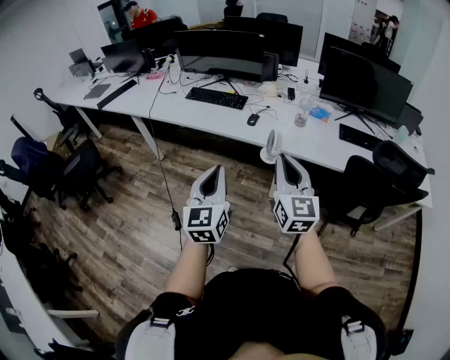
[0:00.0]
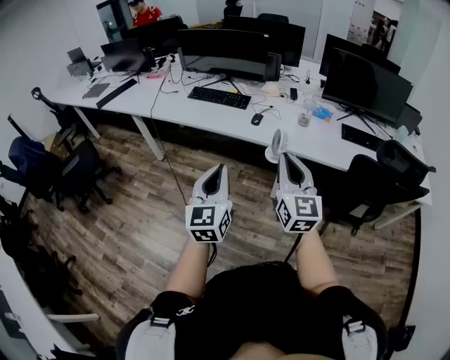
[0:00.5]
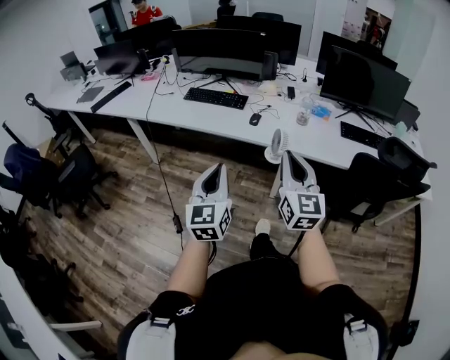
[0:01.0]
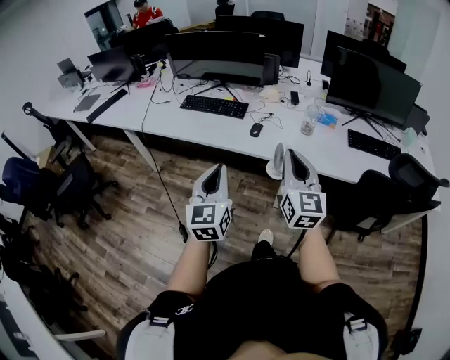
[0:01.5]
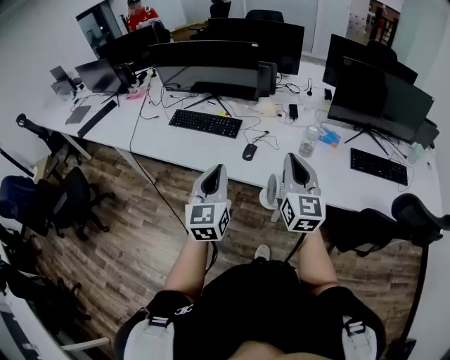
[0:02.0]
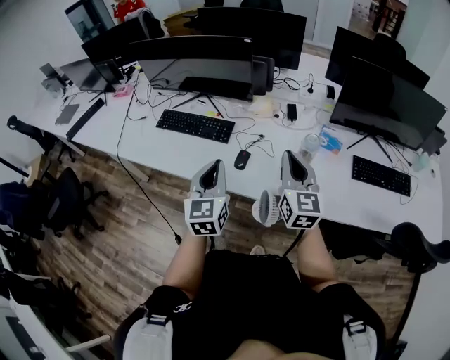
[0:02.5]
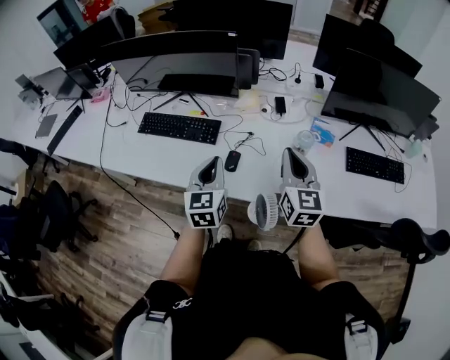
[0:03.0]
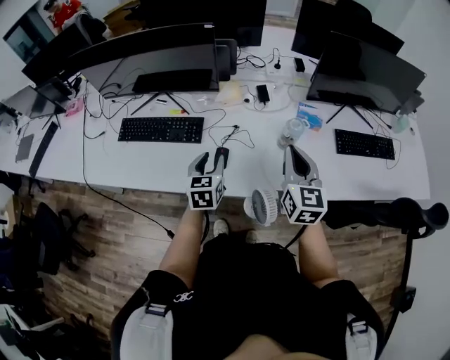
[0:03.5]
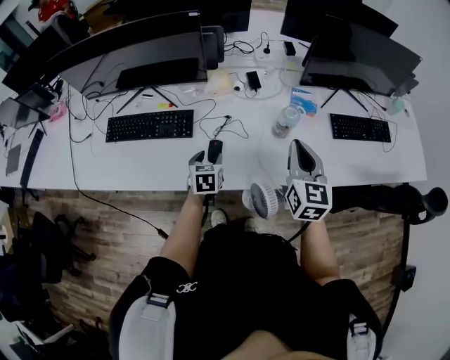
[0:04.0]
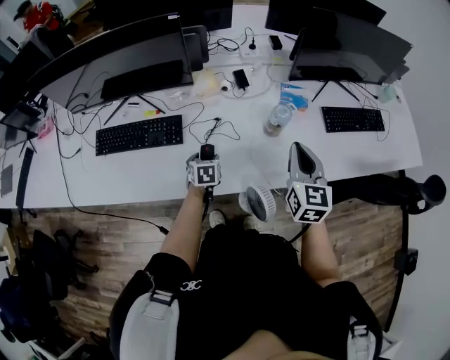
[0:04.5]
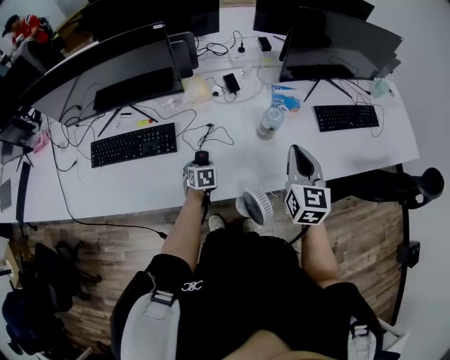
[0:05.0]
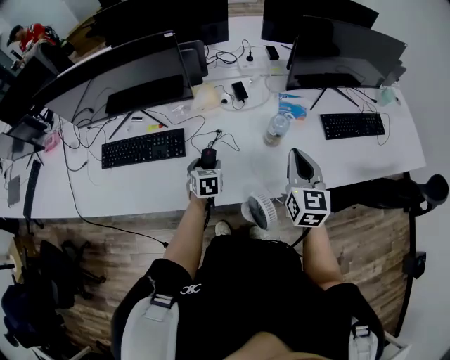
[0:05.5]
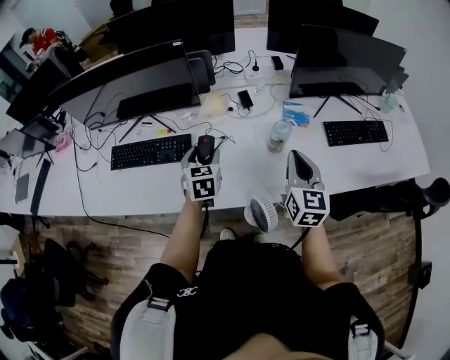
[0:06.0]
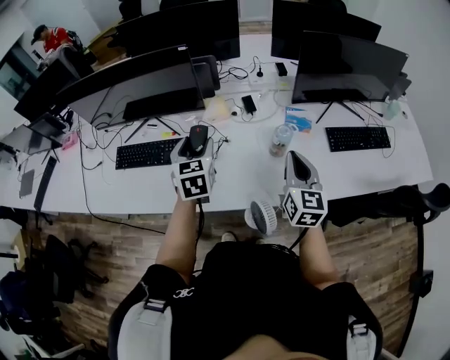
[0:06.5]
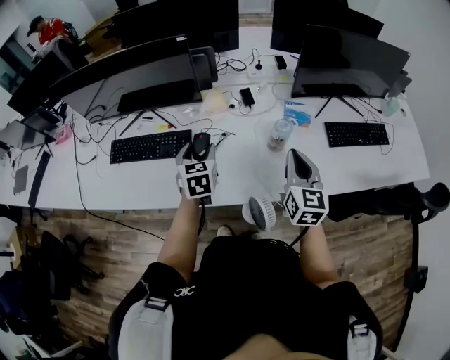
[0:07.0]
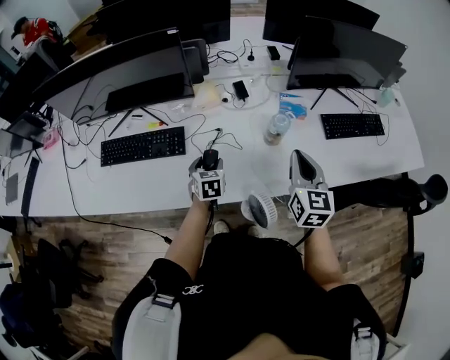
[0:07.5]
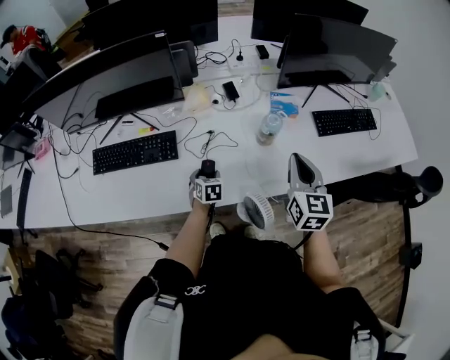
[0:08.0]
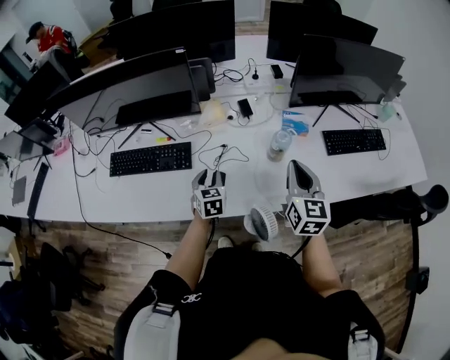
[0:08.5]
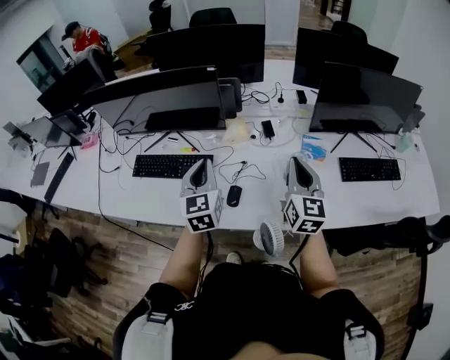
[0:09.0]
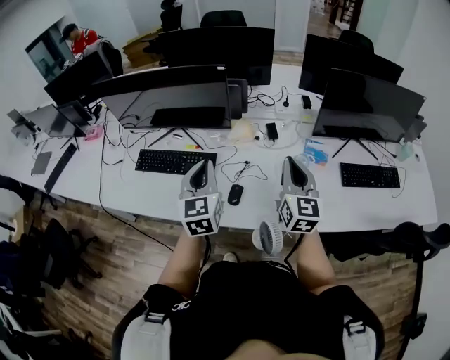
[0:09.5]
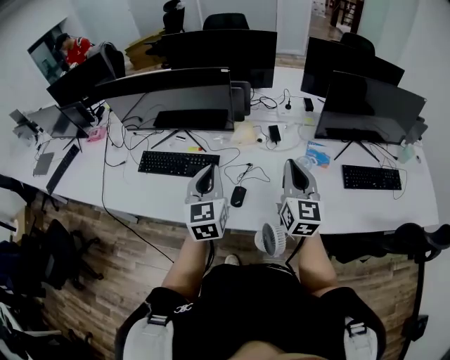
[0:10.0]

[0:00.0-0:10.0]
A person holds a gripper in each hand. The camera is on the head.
0:00.0 to 0:02.0: The grippers both shift forward by roughly 30 cm.
0:02.0 to 0:04.0: The right gripper is displaced forward, downward and to the right by approximately 20 cm, and changes its angle by approximately 30 degrees, while the left gripper heads downward and forward, covering approximately 40 cm, tips its fingers downward by approximately 40 degrees, and opens.
0:04.0 to 0:06.0: The left gripper moves upward, some 15 cm.
0:06.0 to 0:08.0: The left gripper heads downward, covering roughly 20 cm.
0:08.0 to 0:10.0: The right gripper is displaced to the left and upward by about 10 cm, and rotates approximately 20 degrees. The left gripper goes approximately 35 cm upward, tilts its fingers roughly 40 degrees upward, and closes up.

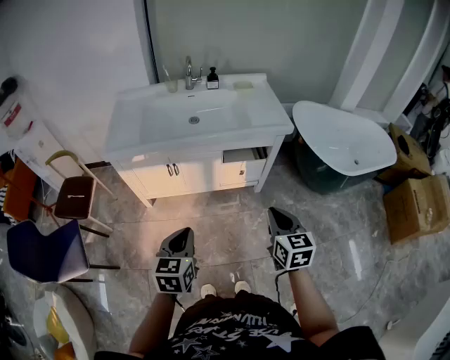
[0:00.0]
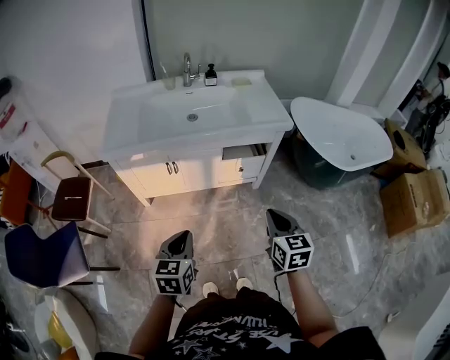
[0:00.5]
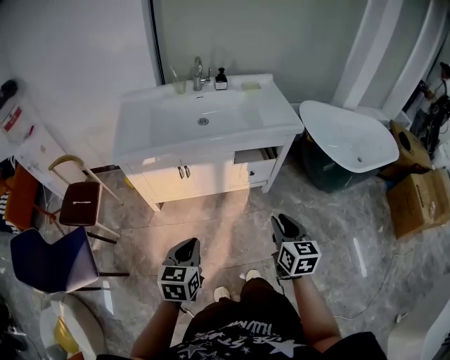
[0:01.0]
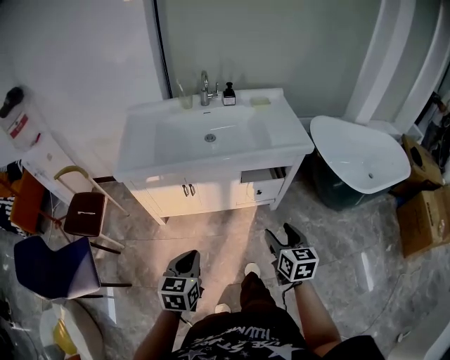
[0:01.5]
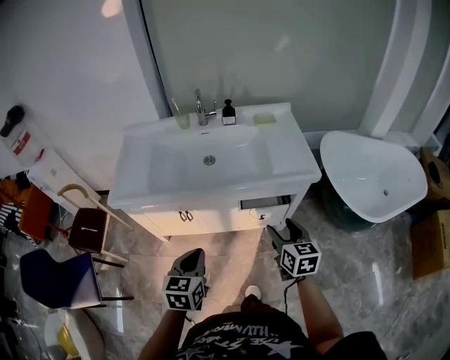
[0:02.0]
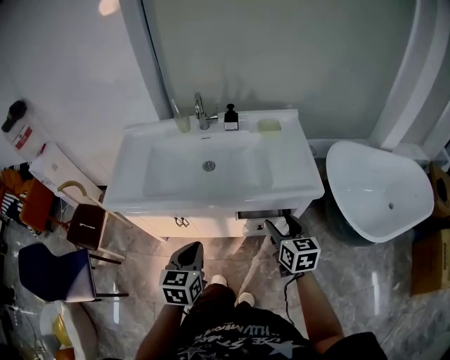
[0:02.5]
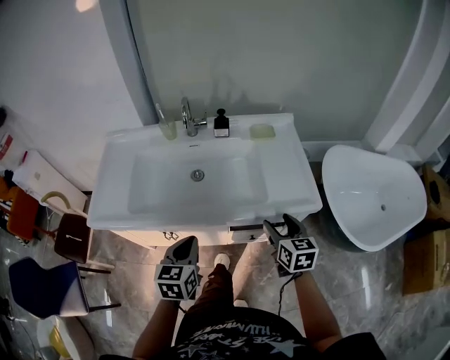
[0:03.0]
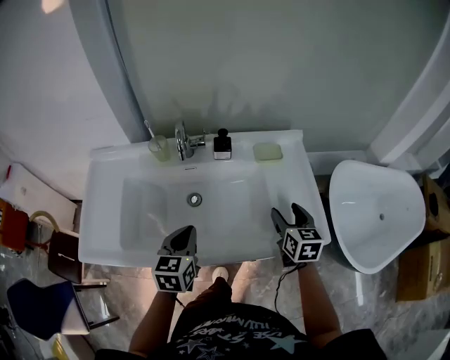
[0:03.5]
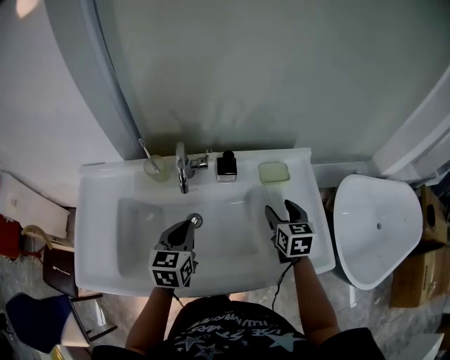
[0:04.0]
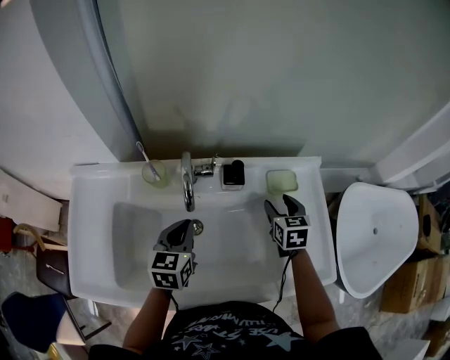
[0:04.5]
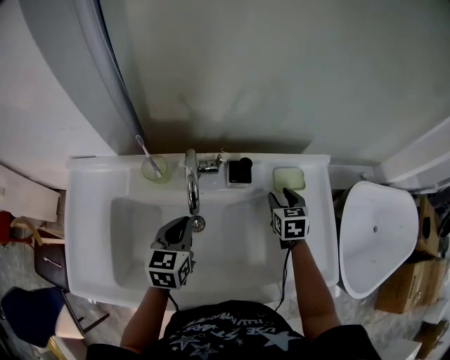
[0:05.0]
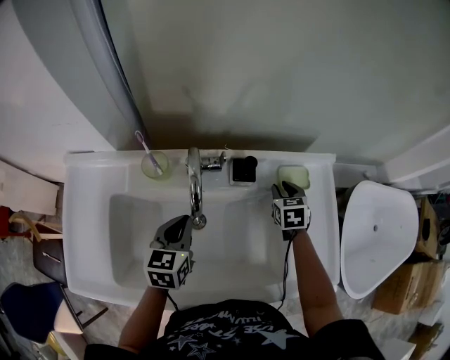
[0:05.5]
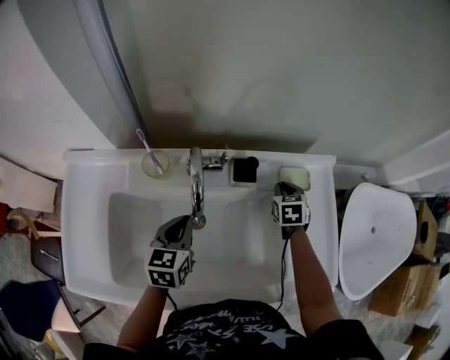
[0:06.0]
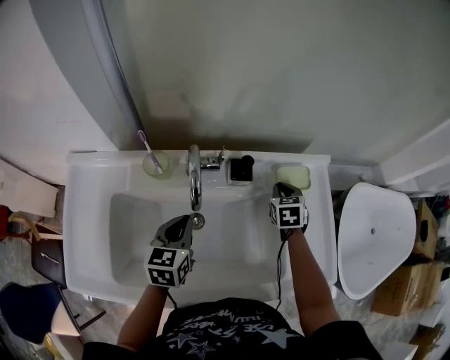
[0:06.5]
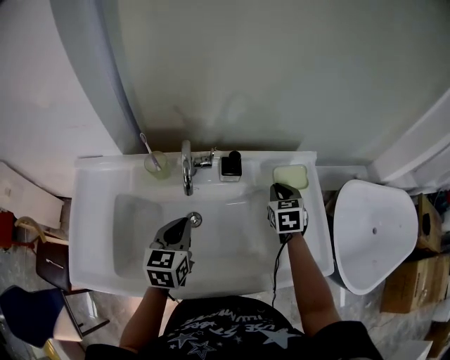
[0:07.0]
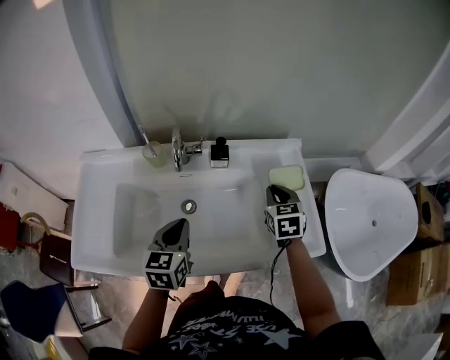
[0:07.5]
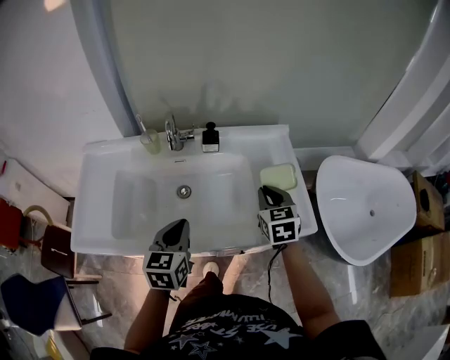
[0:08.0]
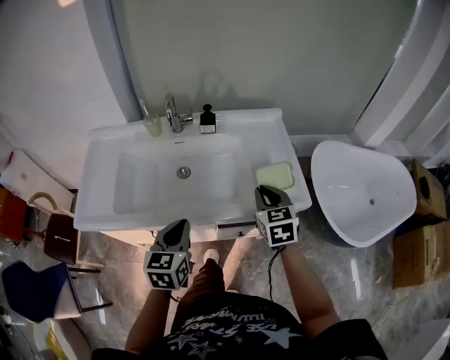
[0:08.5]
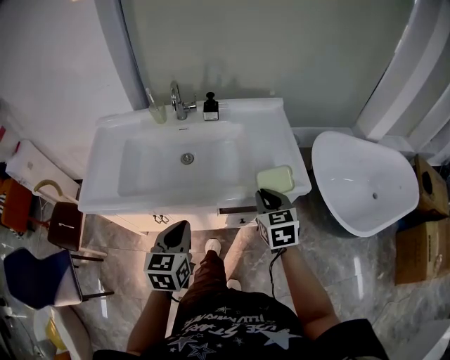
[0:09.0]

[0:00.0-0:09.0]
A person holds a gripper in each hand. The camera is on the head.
0:00.0 to 0:02.0: The two grippers go about 20 cm forward. The right gripper opens up.
0:02.0 to 0:04.5: Both grippers are carried forward, roughly 50 cm. The right gripper changes its angle by about 20 degrees.
0:04.5 to 0:07.0: The right gripper goes downward and returns, approximately 5 cm each way, and closes.
0:07.0 to 0:09.0: The two grippers go roughly 35 cm backward.

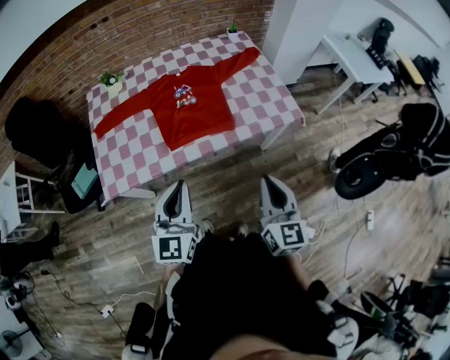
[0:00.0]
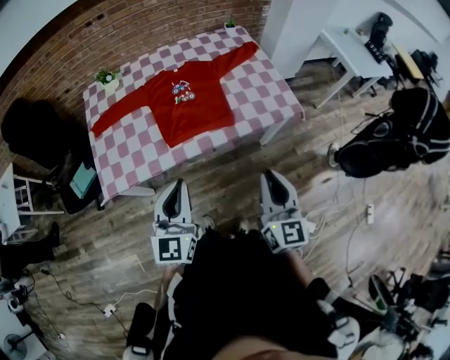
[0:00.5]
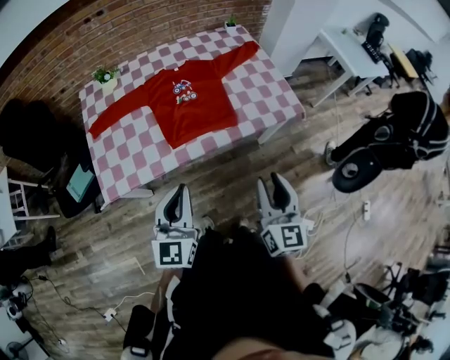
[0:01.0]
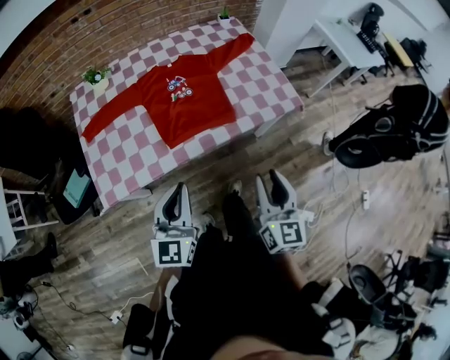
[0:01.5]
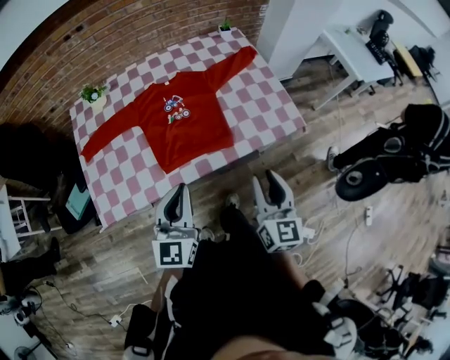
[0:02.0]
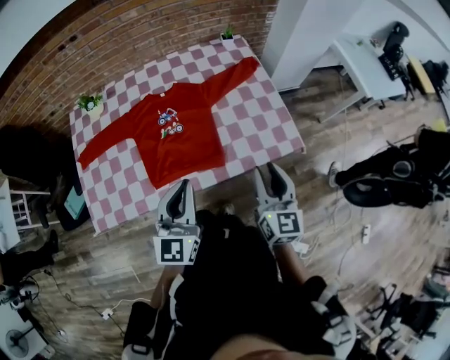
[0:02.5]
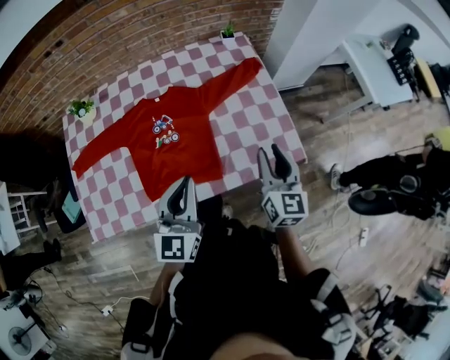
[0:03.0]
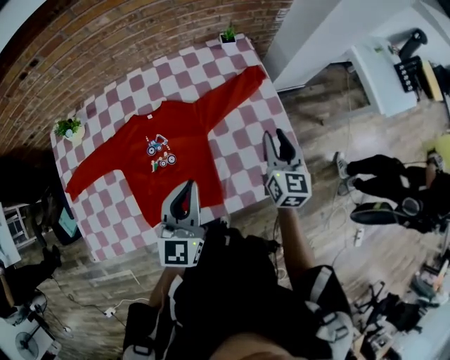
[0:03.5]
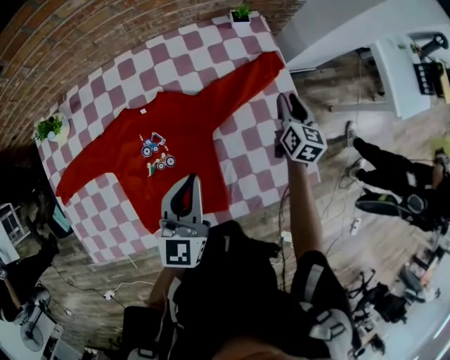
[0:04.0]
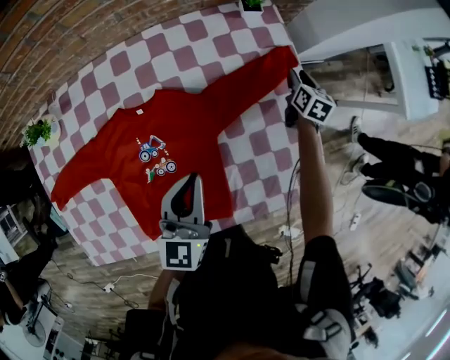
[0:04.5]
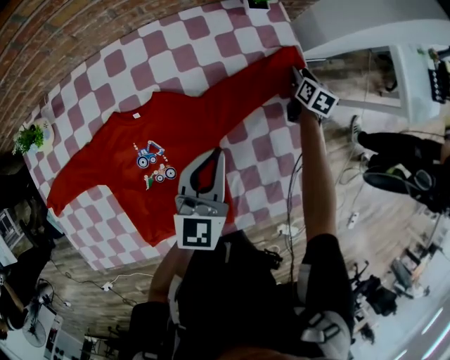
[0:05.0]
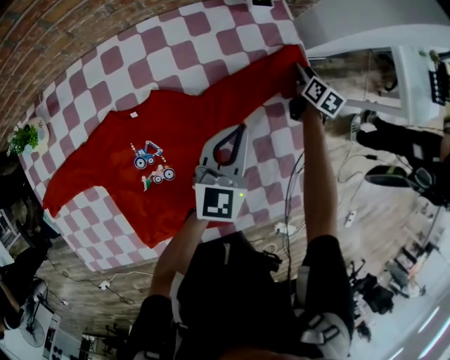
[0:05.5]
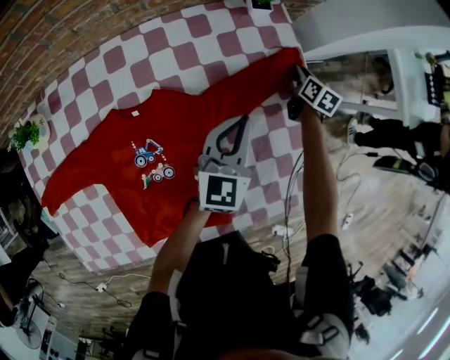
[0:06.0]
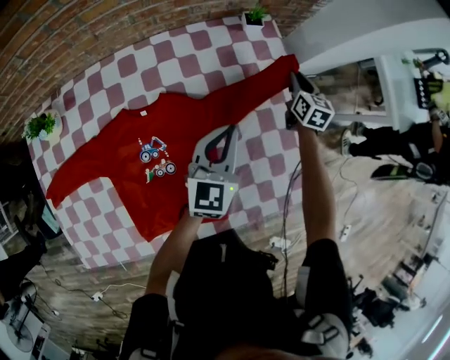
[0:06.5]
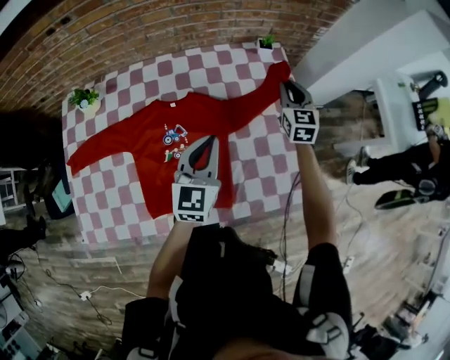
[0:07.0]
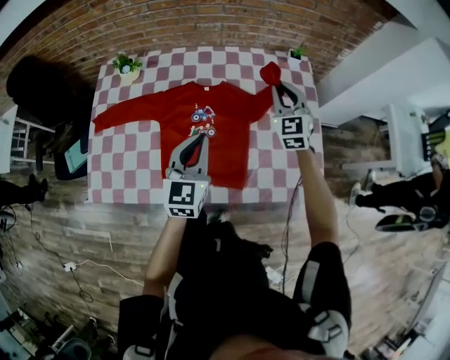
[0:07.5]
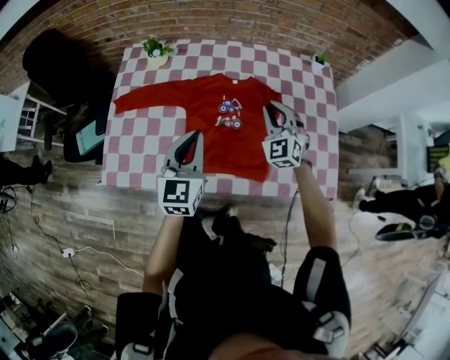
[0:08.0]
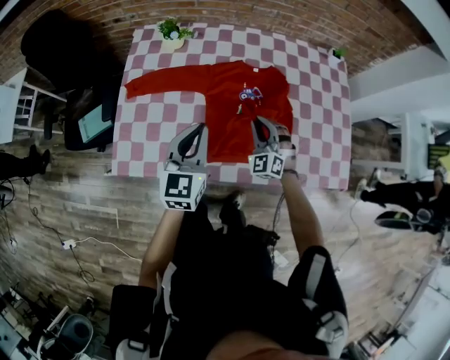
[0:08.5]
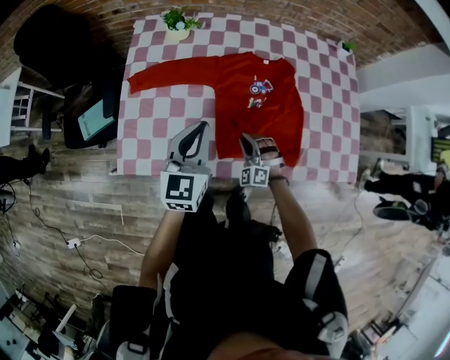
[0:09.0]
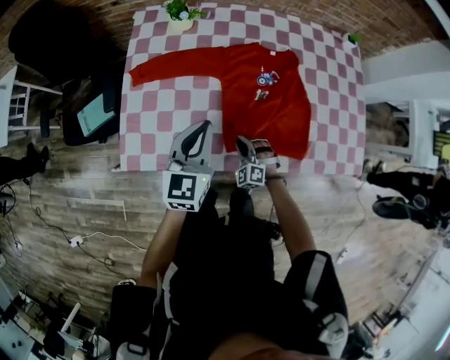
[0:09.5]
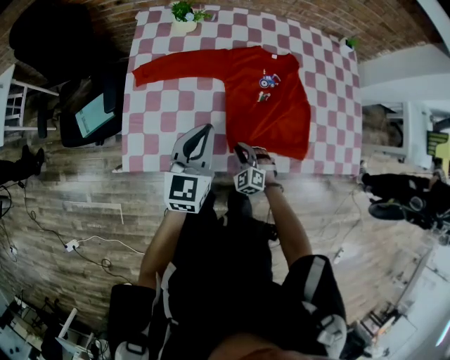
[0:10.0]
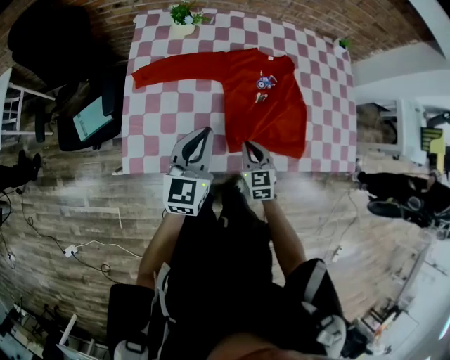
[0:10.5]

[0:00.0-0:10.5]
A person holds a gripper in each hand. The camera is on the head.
0:00.0 to 0:02.0: Both grippers travel together forward, some 15 cm. The right gripper opens its fingers.
0:02.0 to 0:04.0: The pair of grippers is taken forward, approximately 50 cm.
0:04.0 to 0:06.5: Both grippers travel together forward, some 15 cm. The right gripper reaches about 15 cm downward, then returns.
0:06.5 to 0:08.5: Both grippers are carried approximately 50 cm. The left gripper swivels some 20 degrees. Meanwhile the right gripper twists some 70 degrees counterclockwise, seen from behind.
0:08.5 to 0:10.5: The right gripper is displaced backward and to the left by roughly 15 cm, goes downward and returns, approximately 20 cm each way, and rolls clockwise, seen from behind, by approximately 40 degrees; the left gripper moves to the left, roughly 10 cm.
